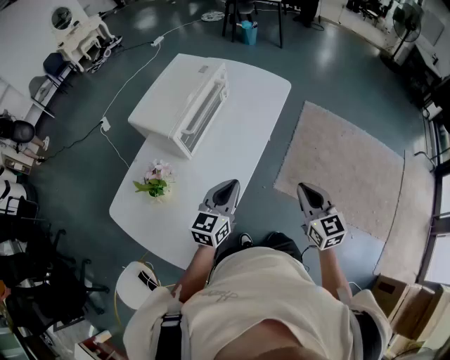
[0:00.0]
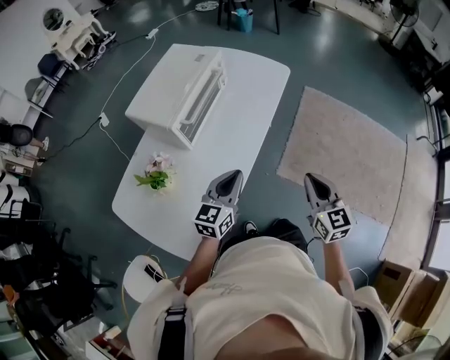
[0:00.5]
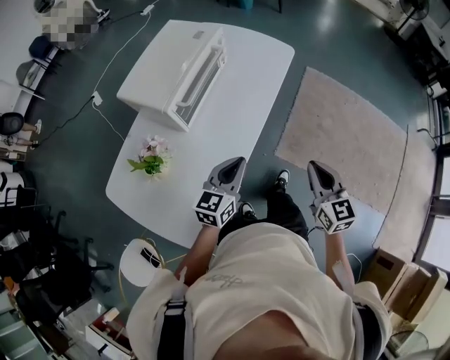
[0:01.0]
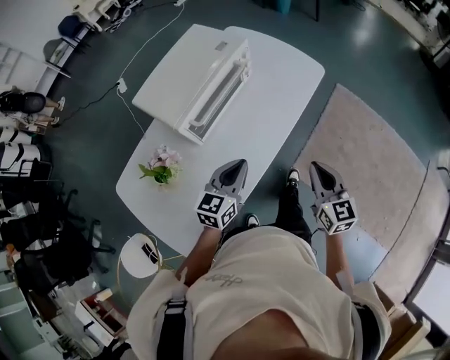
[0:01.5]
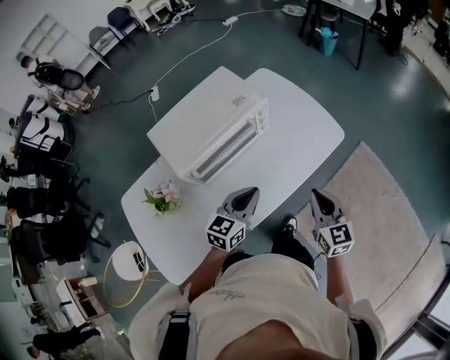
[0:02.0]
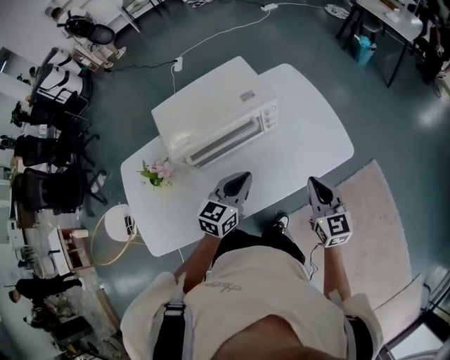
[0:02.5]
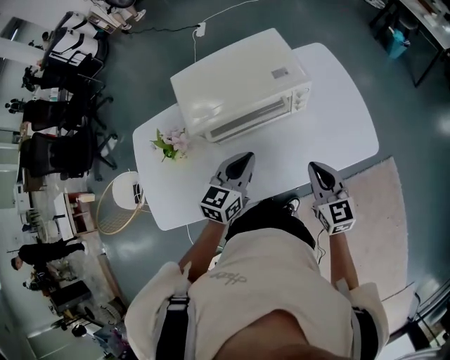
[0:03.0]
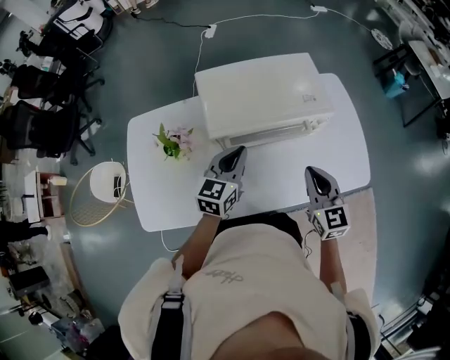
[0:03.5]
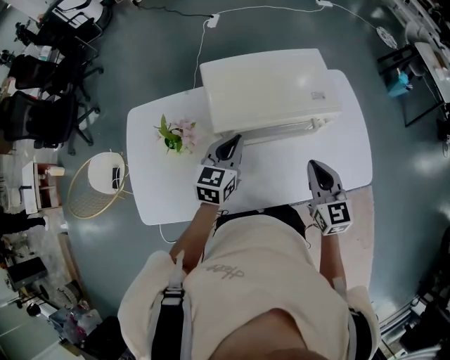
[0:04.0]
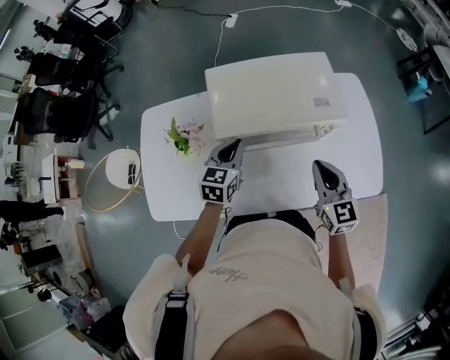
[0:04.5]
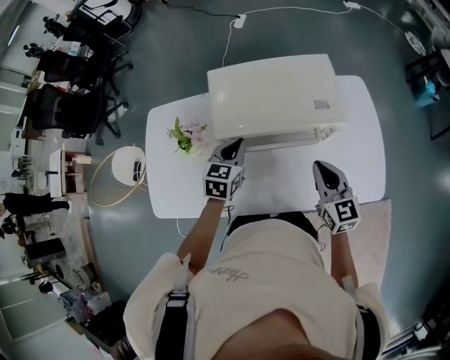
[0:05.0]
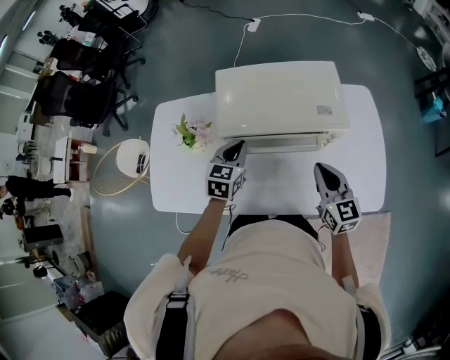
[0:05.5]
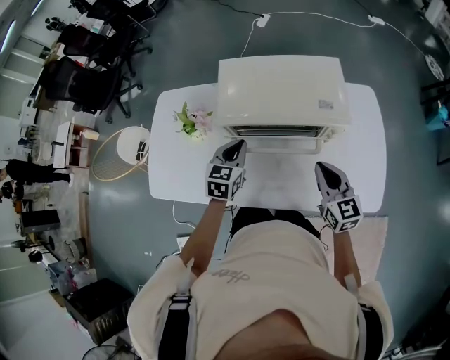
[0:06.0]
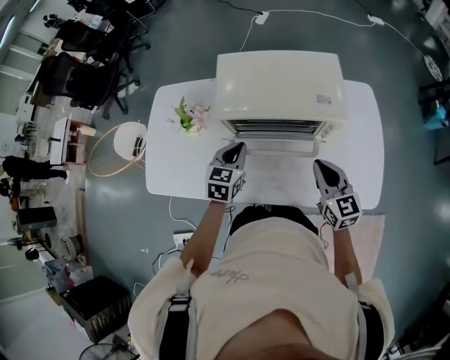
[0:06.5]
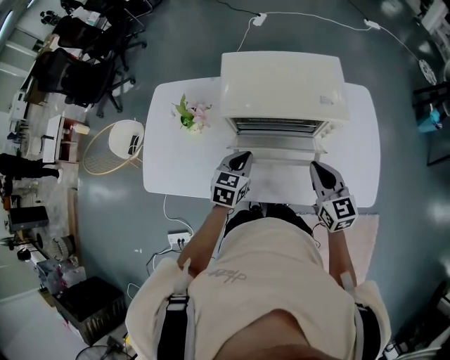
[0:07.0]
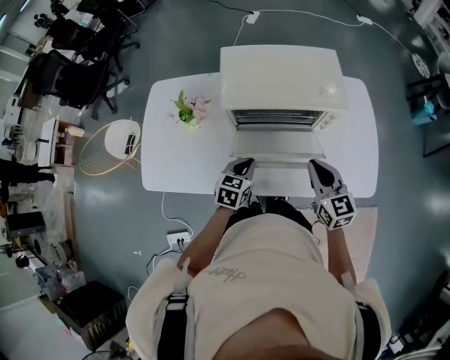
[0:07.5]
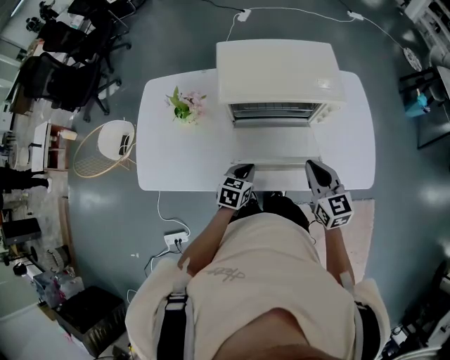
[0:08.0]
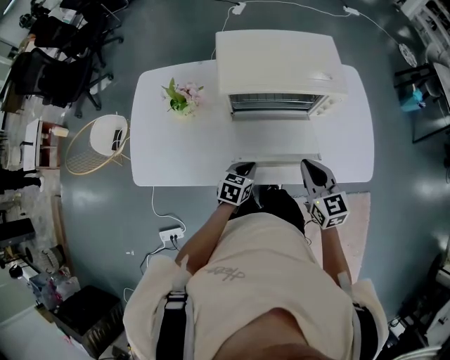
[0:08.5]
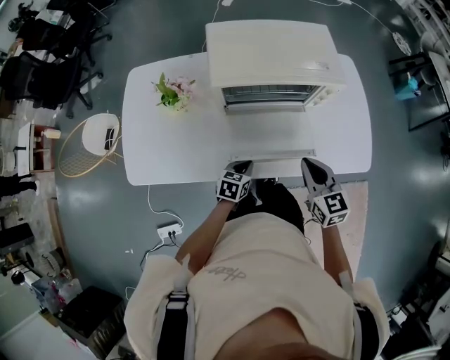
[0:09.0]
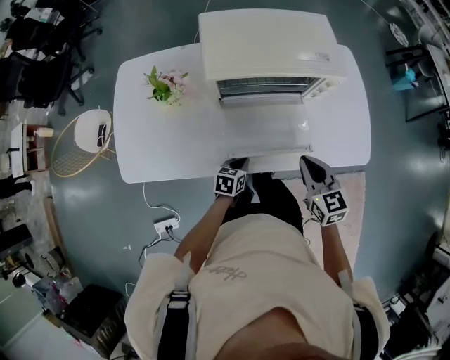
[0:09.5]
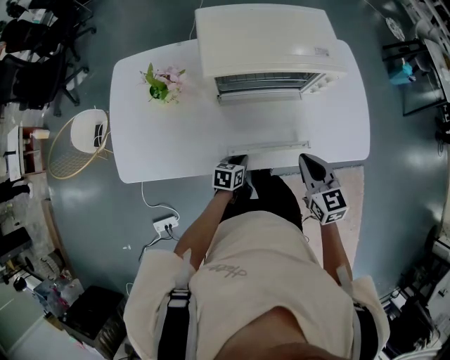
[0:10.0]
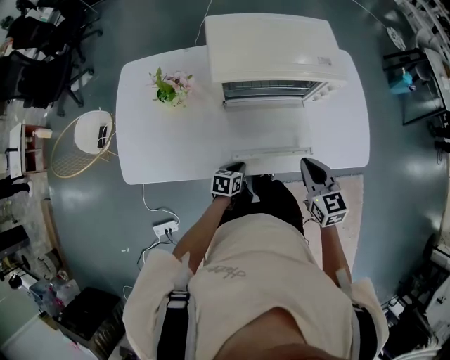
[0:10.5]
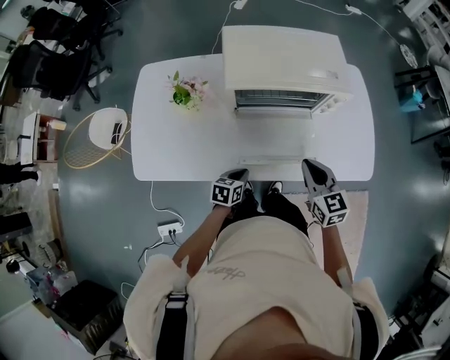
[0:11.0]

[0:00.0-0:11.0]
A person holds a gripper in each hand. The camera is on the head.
0:00.0 to 0:02.0: The grippers both shift forward by about 25 cm. The right gripper changes its angle by about 20 degrees.
0:02.0 to 0:03.5: The right gripper ends up about 15 cm from where it was, and changes its angle by about 30 degrees. The left gripper ends up approximately 15 cm from where it was, and rotates some 30 degrees.
0:03.5 to 0:05.5: The left gripper shifts by roughly 5 cm, and changes its angle by approximately 20 degrees. The right gripper moves forward, about 5 cm.
0:05.5 to 0:07.5: The left gripper heads backward and downward, covering approximately 15 cm. Meanwhile the right gripper travels backward by about 5 cm.
0:07.5 to 0:09.0: The right gripper travels backward by about 5 cm, while the left gripper is displaced downward and backward by approximately 15 cm.

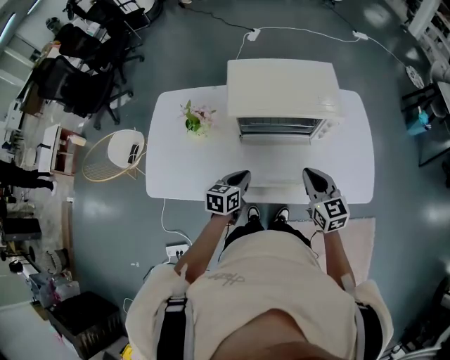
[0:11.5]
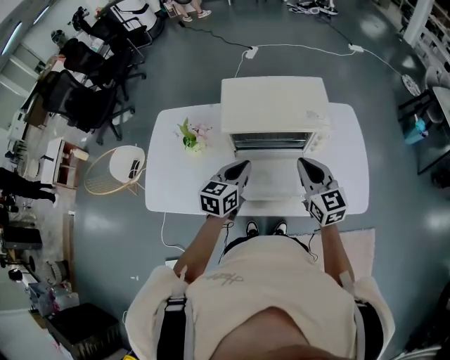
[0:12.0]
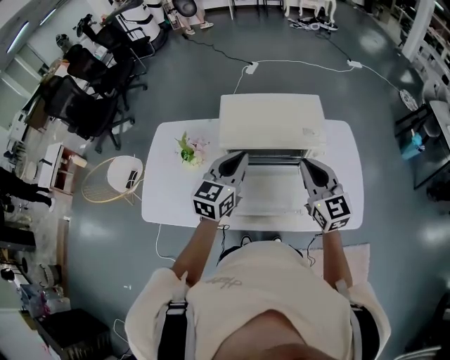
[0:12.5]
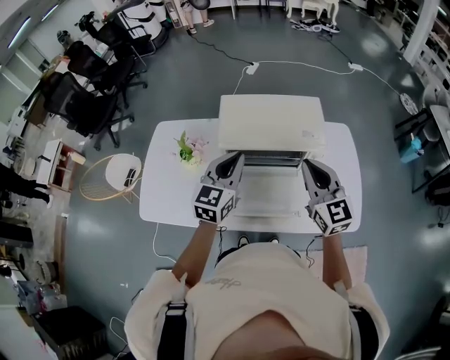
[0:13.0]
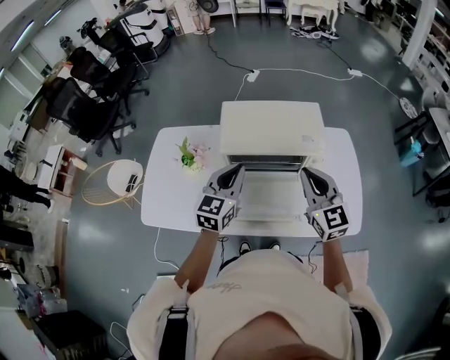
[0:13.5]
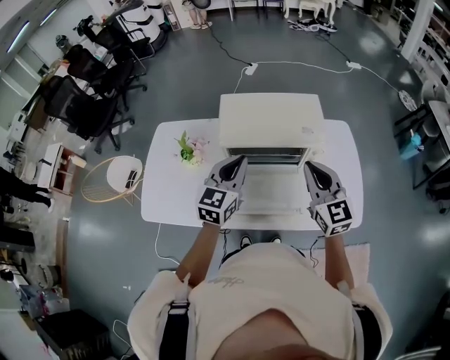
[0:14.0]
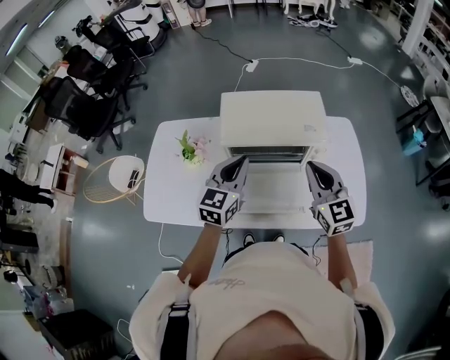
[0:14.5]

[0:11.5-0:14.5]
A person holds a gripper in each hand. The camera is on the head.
0:11.5 to 0:13.0: The right gripper shifts about 15 cm upward and forward. The left gripper is displaced upward by approximately 20 cm, and changes its angle by approximately 40 degrees.
0:13.0 to 0:14.5: The grippers make only small movements.

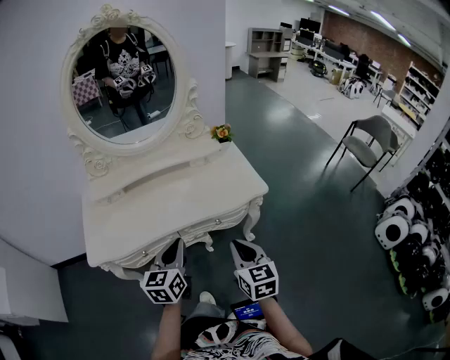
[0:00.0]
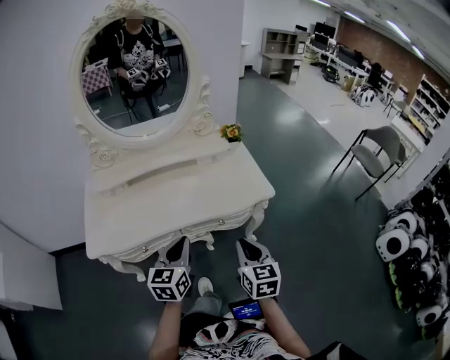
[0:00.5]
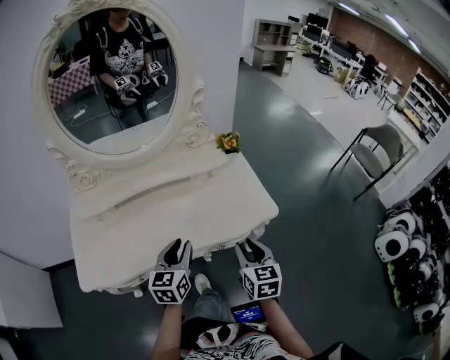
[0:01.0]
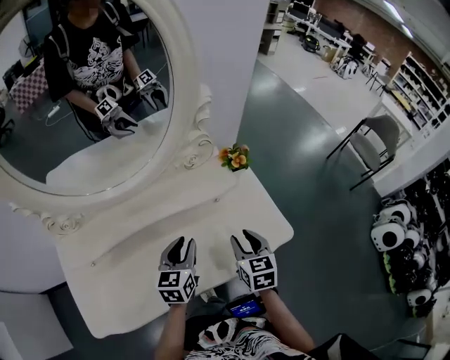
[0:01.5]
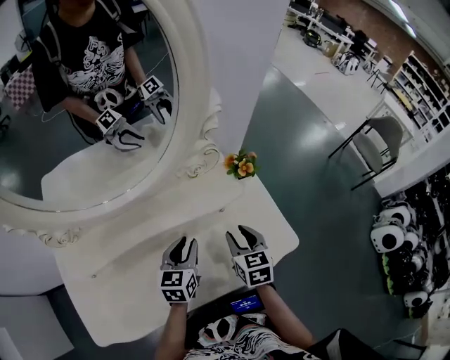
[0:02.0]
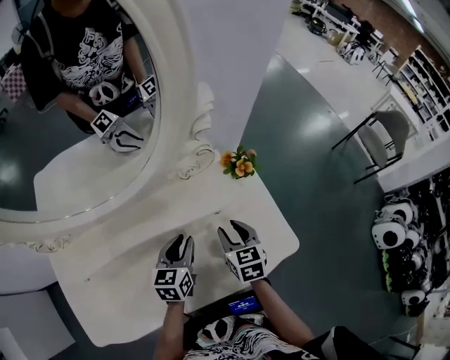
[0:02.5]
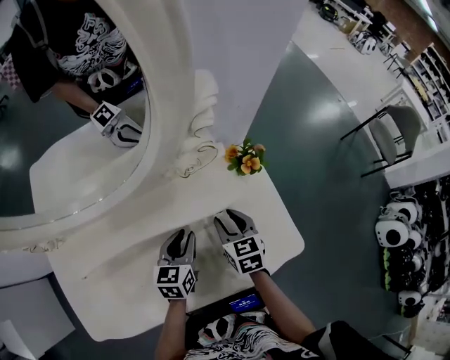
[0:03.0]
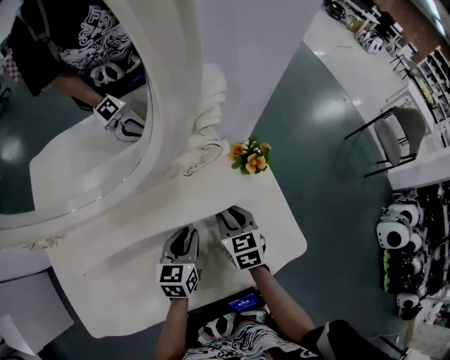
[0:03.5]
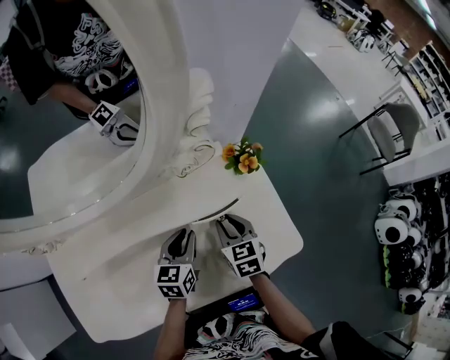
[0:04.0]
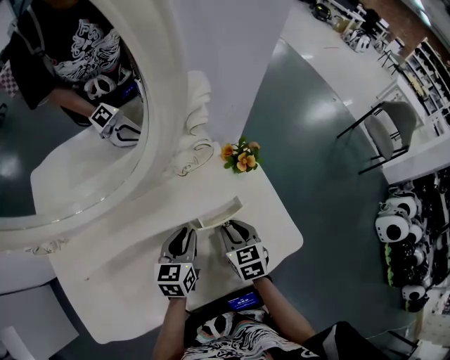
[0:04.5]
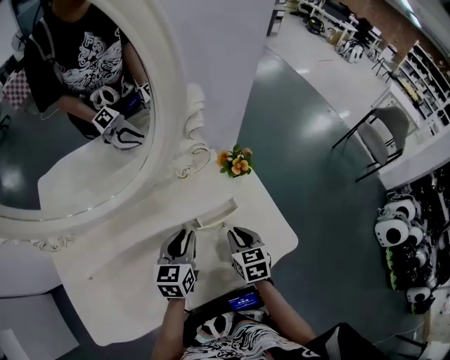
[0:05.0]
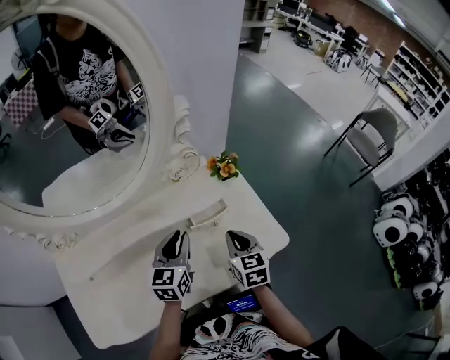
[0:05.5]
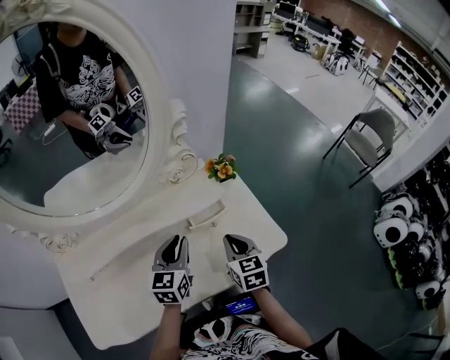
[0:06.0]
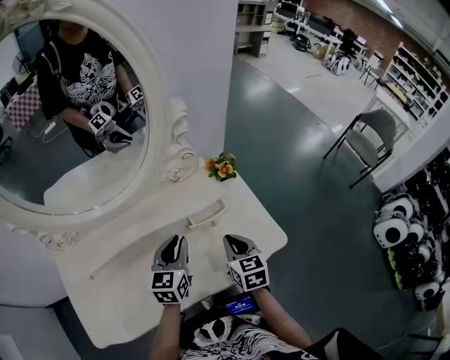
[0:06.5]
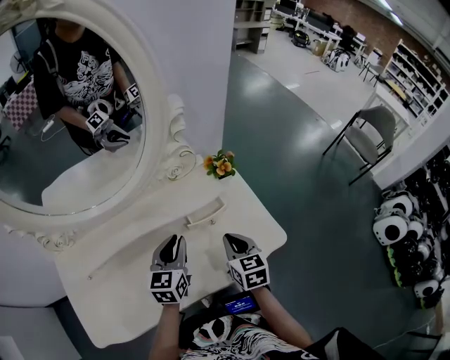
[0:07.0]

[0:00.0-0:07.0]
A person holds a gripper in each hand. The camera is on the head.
0:00.0 to 0:02.0: The grippers both shift forward by roughly 40 cm. The right gripper opens its fingers; the left gripper opens.
0:02.0 to 0:03.5: The right gripper goes approximately 10 cm forward and downward. The left gripper goes roughly 5 cm downward.
0:03.5 to 0:05.0: The left gripper moves upward, about 5 cm, while the right gripper moves backward, some 10 cm.
0:05.0 to 0:07.0: The left gripper shifts by about 5 cm; the right gripper travels upward by roughly 5 cm.

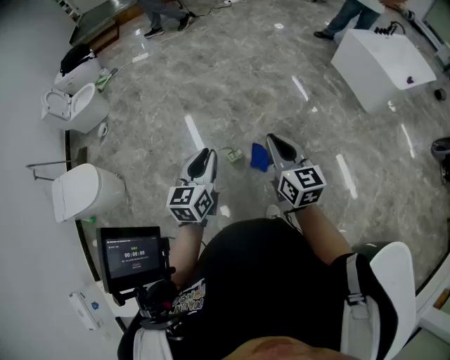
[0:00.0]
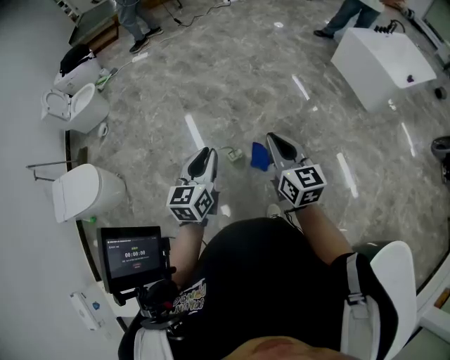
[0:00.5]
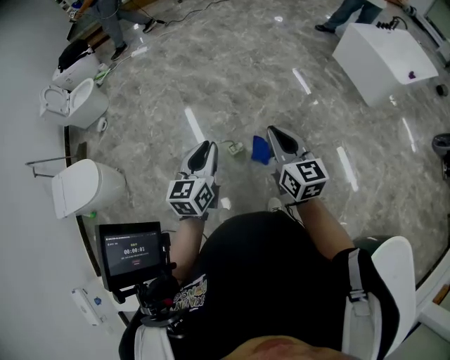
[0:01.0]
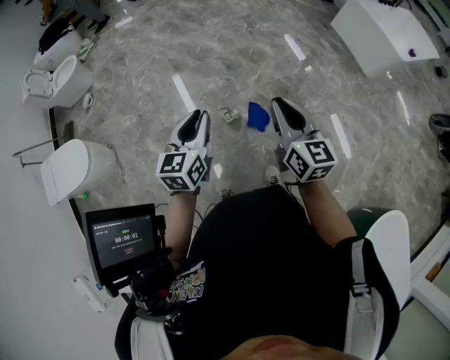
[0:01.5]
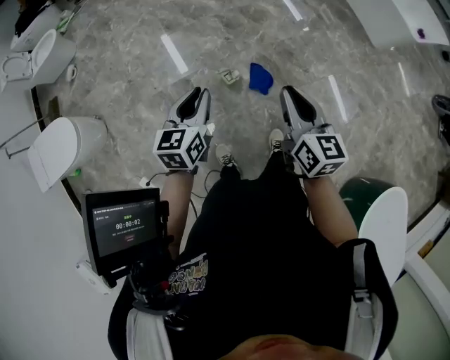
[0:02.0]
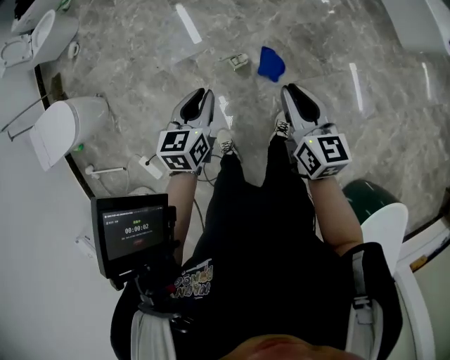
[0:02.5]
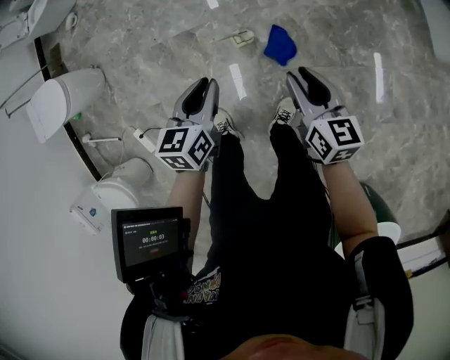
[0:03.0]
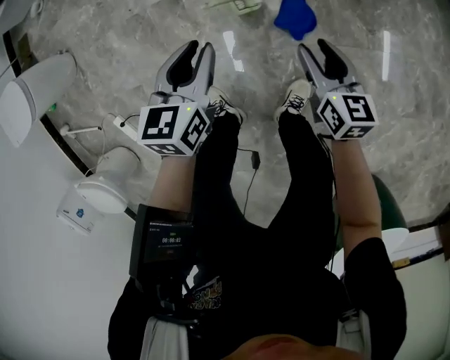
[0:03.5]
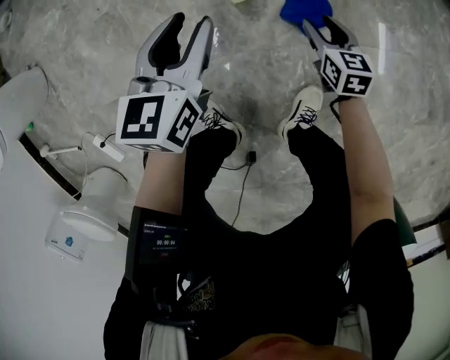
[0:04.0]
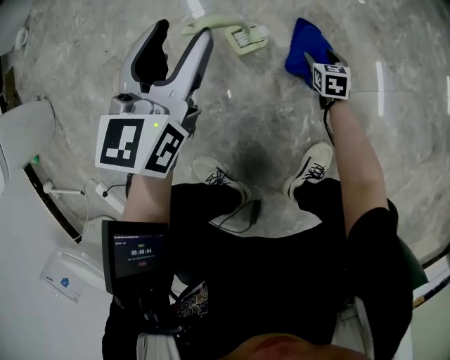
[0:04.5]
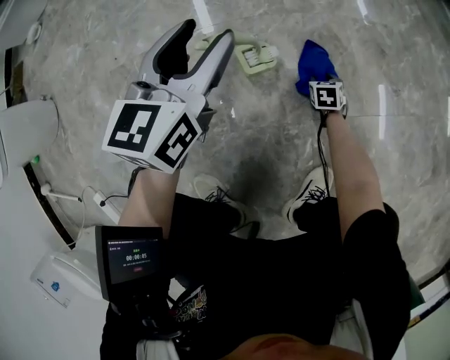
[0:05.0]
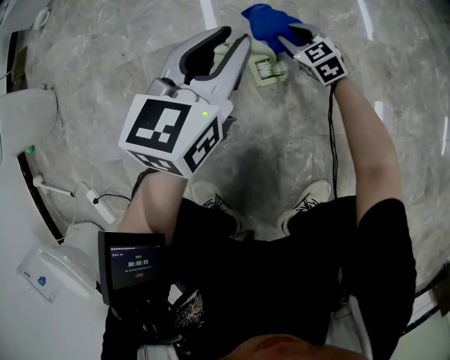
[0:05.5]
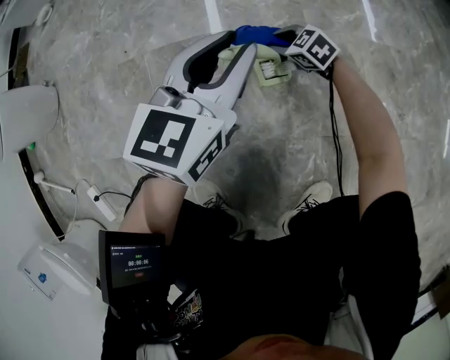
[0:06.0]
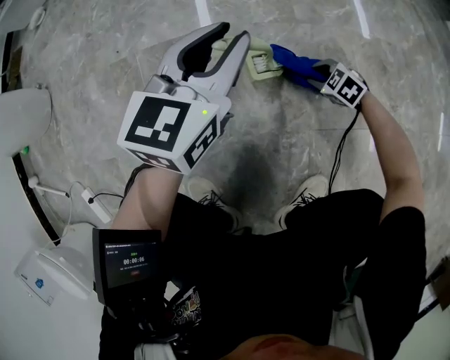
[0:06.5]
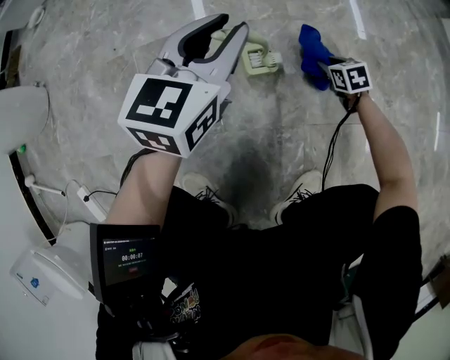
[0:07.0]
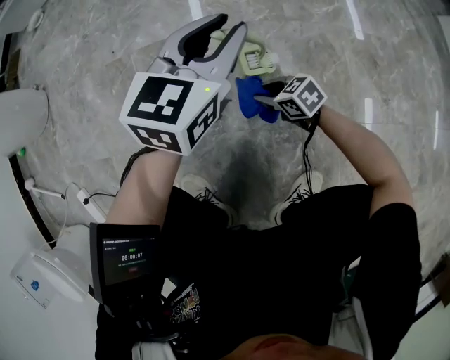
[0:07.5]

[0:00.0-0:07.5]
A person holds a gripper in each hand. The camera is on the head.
0:00.0 to 0:02.0: The left gripper is displaced downward and to the left by approximately 15 cm; the right gripper is displaced downward by roughly 10 cm.
0:02.0 to 0:04.0: The right gripper is displaced downward by about 70 cm, rotates about 30 degrees, and opens, while the left gripper shifts about 40 cm downward.
0:04.0 to 0:05.5: The left gripper is displaced forward by approximately 10 cm. The right gripper travels forward, to the left and downward by some 25 cm, and rotates approximately 40 degrees.
0:05.5 to 0:07.5: The right gripper swings left and right, about 25 cm each way, with 2 reversals, and rotates approximately 40 degrees.
